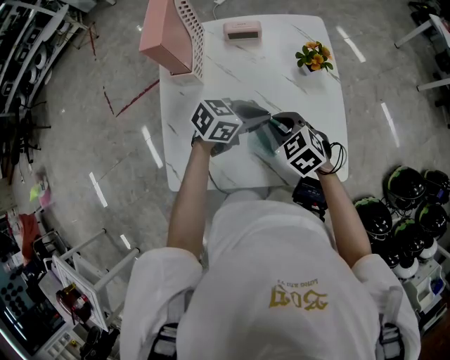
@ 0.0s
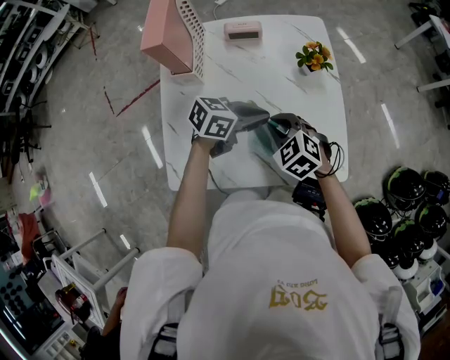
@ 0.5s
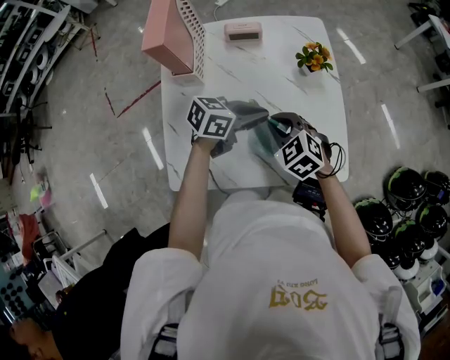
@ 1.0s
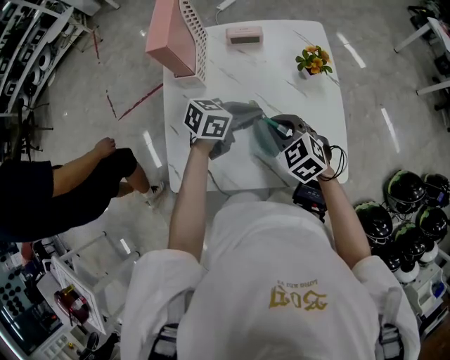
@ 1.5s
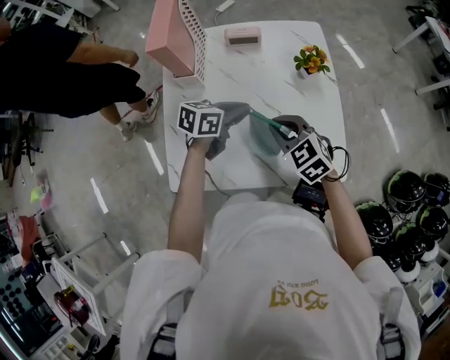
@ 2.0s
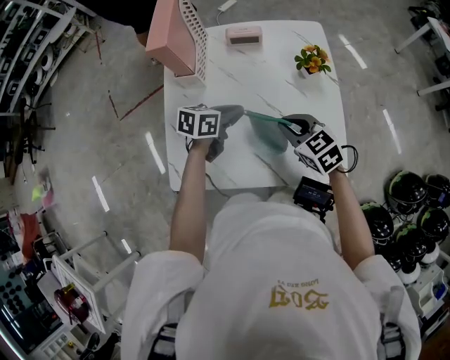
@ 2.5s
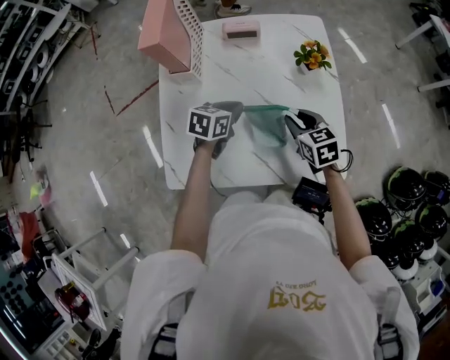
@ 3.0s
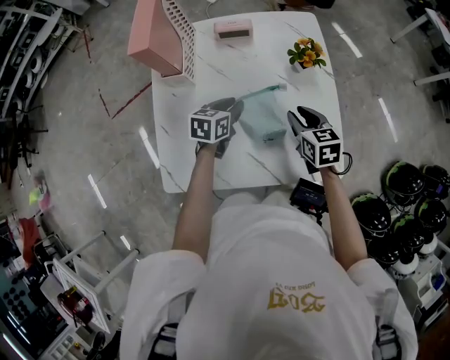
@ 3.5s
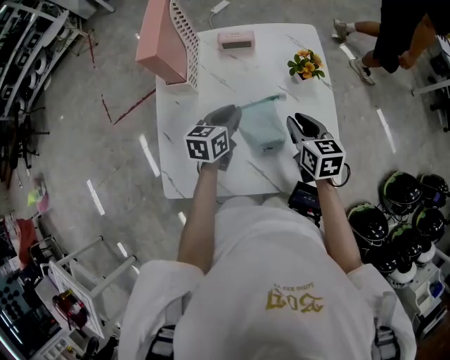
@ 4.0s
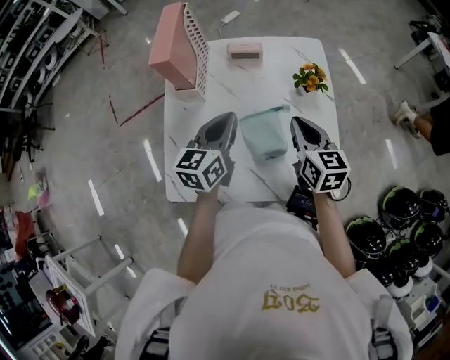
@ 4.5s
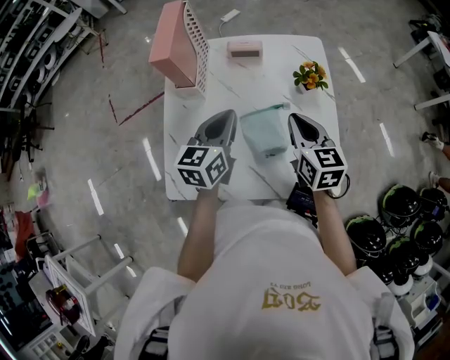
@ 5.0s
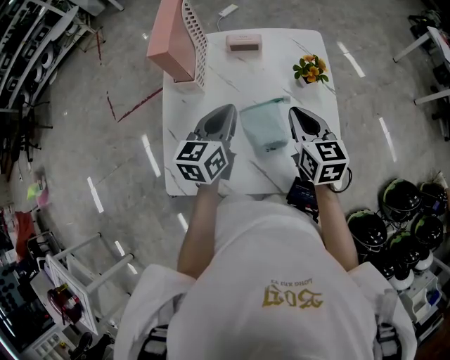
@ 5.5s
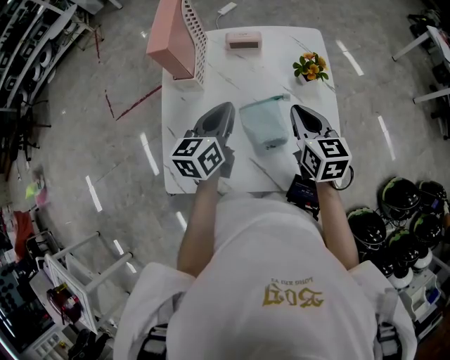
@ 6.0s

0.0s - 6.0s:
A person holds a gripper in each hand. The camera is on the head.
0.0s - 2.0s: The left gripper heads to the left, covering about 5 cm, and changes its angle by approximately 20 degrees.
2.0s - 4.0s: The left gripper turns by some 30 degrees; the right gripper is displaced to the right and forward by some 10 cm, and changes its angle by some 40 degrees.
4.0s - 6.0s: Both grippers travel together upward, approximately 10 cm. The right gripper closes its fingers.

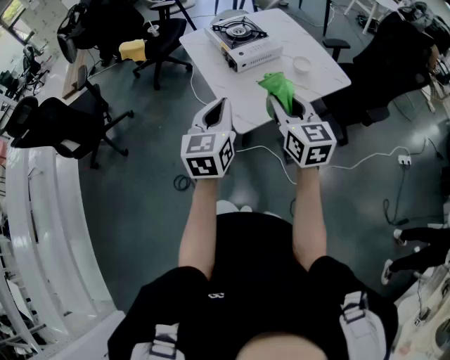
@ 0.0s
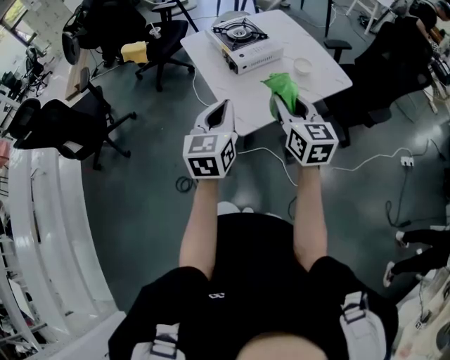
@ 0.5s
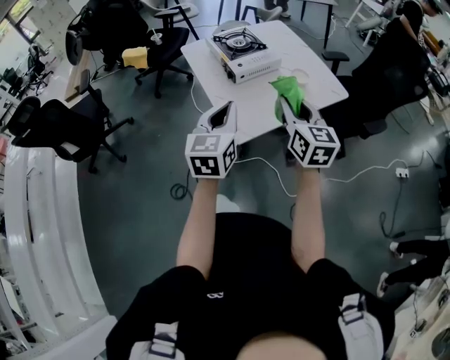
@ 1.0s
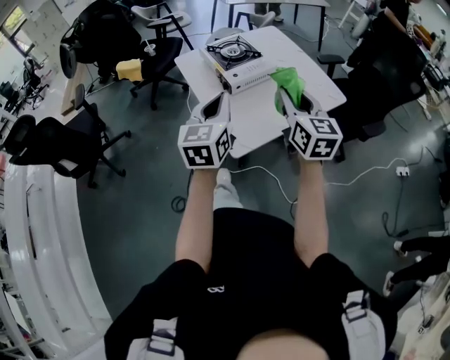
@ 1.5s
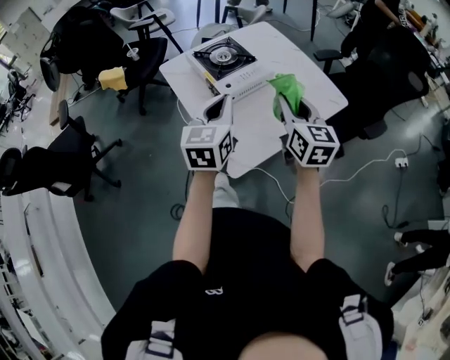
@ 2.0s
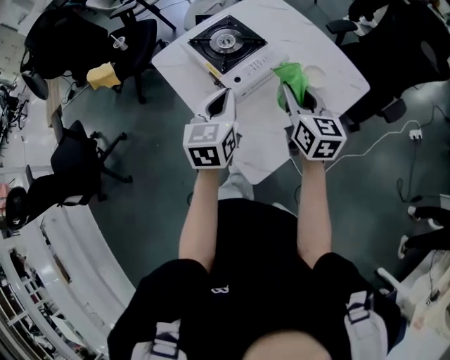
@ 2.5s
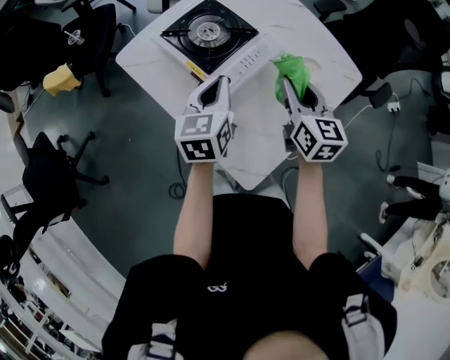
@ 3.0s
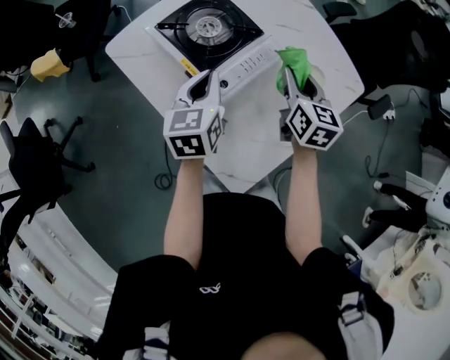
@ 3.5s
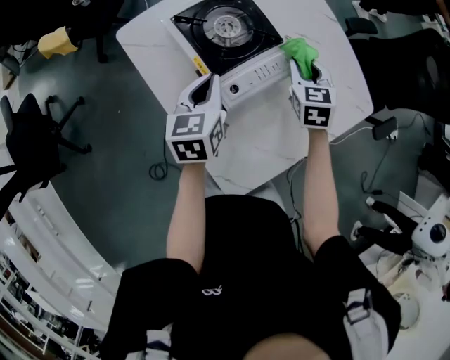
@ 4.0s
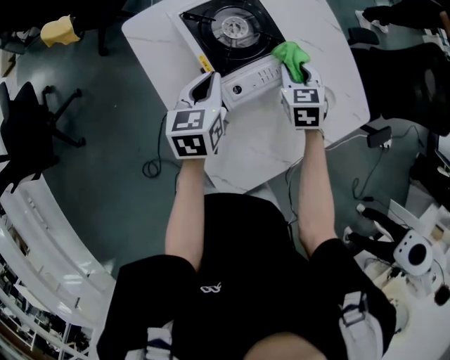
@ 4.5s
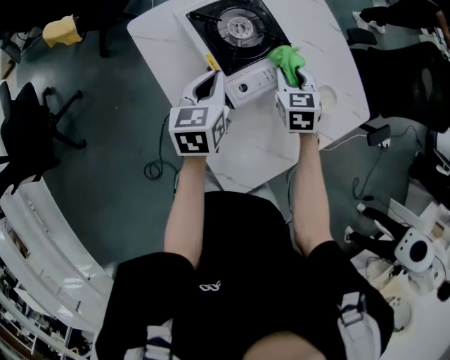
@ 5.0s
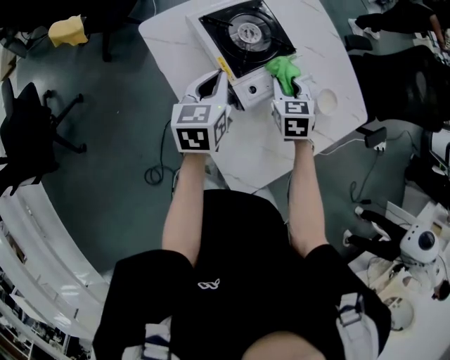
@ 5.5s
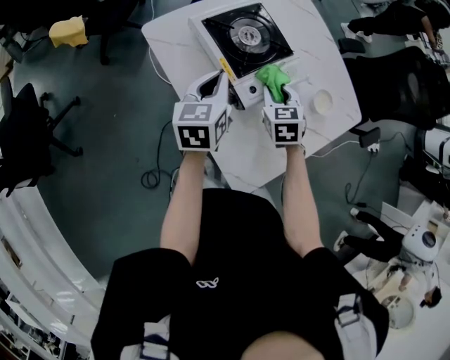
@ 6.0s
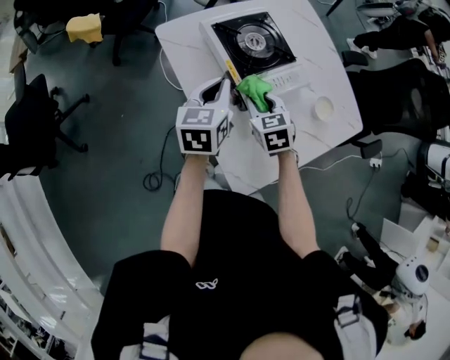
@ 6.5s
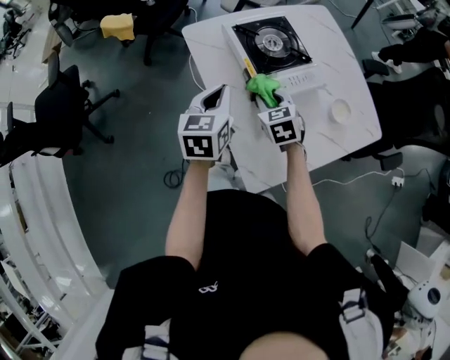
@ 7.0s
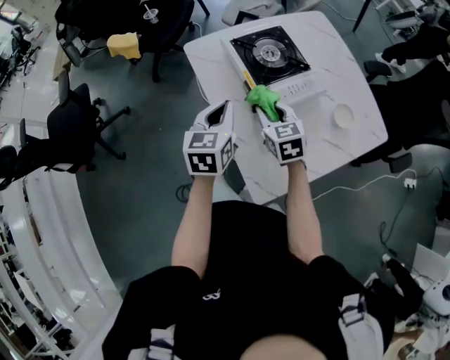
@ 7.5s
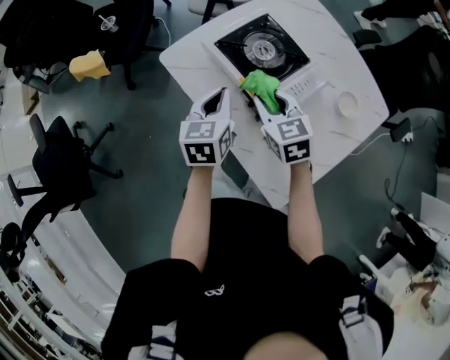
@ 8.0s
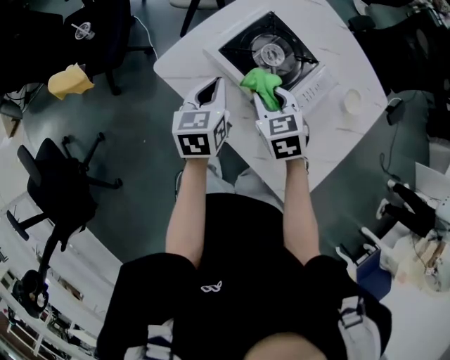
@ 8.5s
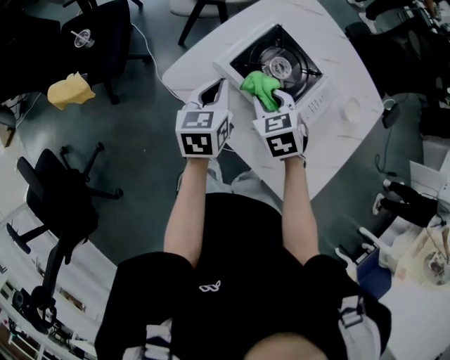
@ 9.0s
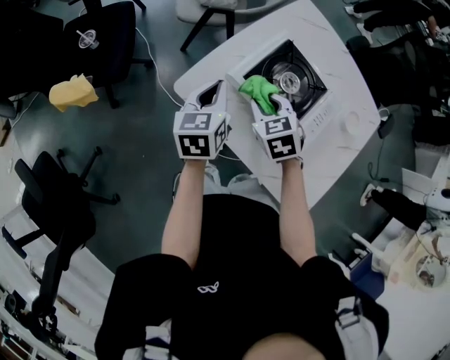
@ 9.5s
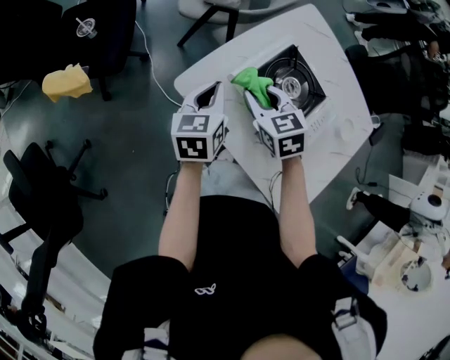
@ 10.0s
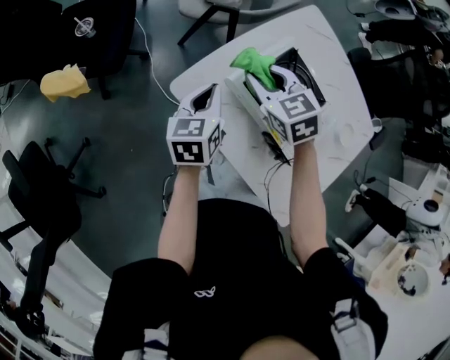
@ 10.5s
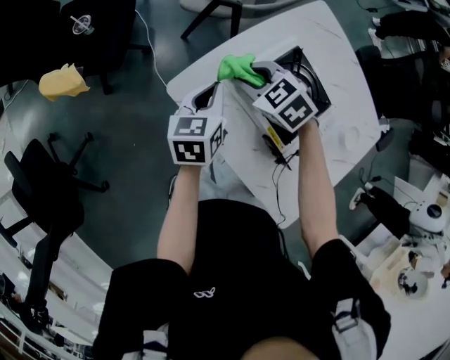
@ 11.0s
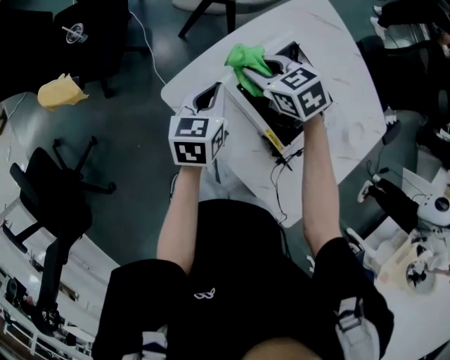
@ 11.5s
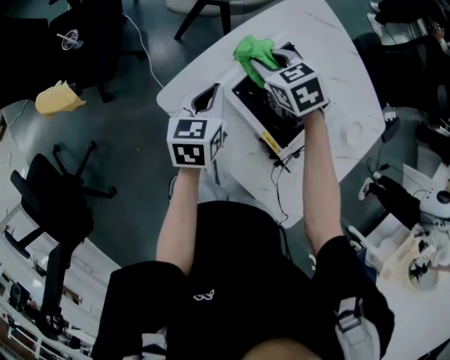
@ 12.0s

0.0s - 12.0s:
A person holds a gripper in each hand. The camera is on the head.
0.0s - 2.0s: The grippers both shift forward by approximately 20 cm.
2.0s - 4.0s: The right gripper travels forward and downward by roughly 35 cm, and turns by roughly 40 degrees; the left gripper goes some 30 cm forward, downward and to the left, and rotates roughly 20 degrees.
4.0s - 6.0s: The left gripper ends up roughly 5 cm from where it was; the right gripper travels to the left and backward by approximately 15 cm.
6.0s - 8.0s: The left gripper moves some 10 cm backward and comes back. The right gripper goes about 15 cm to the left and upward.
8.0s - 10.0s: Both grippers move to the left and forward, some 20 cm.
10.0s - 12.0s: The right gripper travels forward and to the right by some 15 cm, while the left gripper travels to the right by some 5 cm.

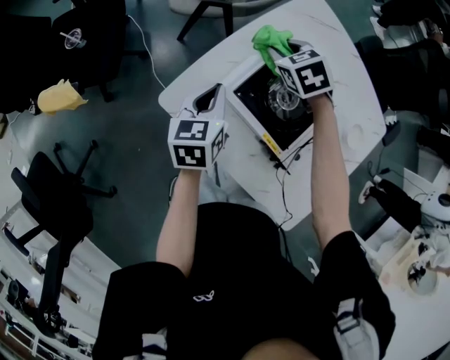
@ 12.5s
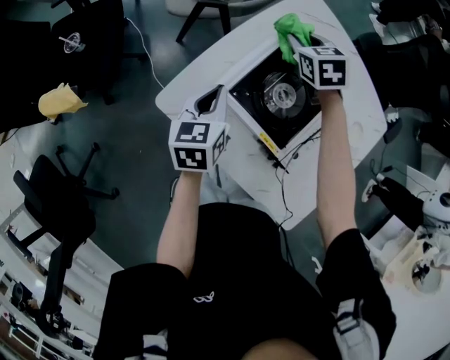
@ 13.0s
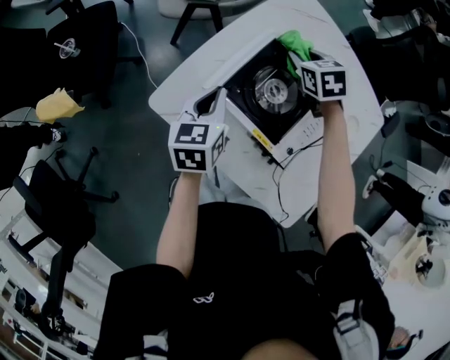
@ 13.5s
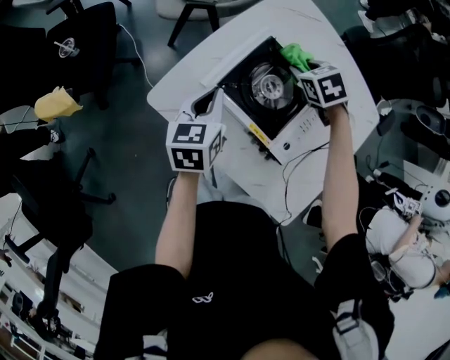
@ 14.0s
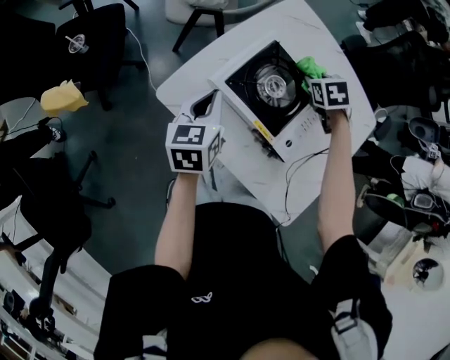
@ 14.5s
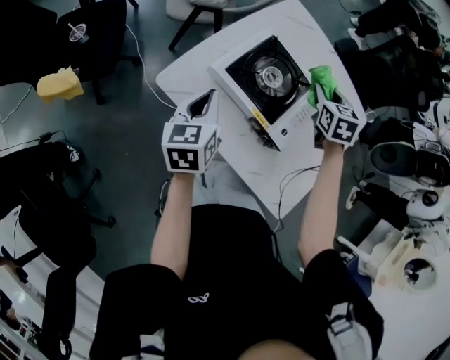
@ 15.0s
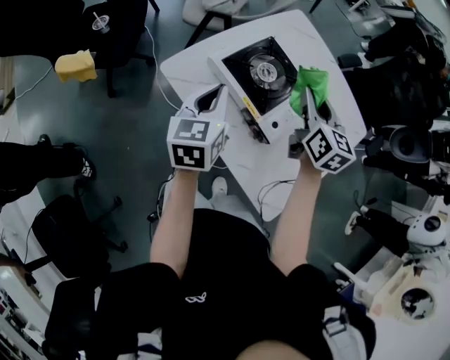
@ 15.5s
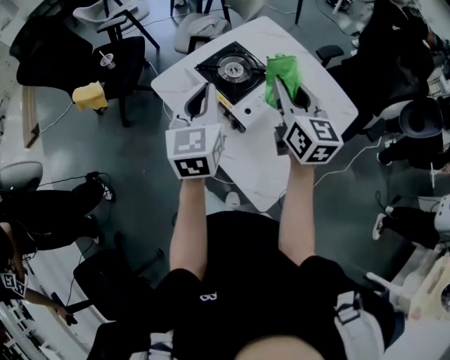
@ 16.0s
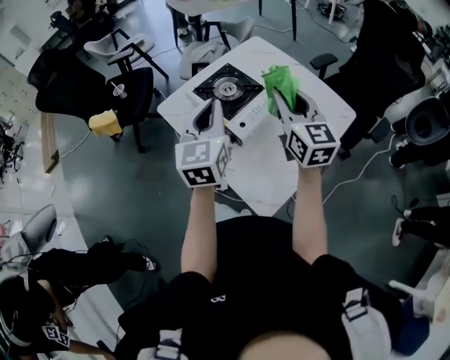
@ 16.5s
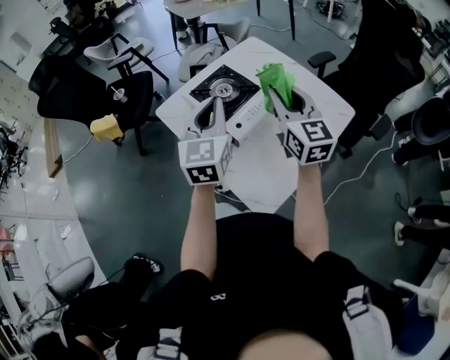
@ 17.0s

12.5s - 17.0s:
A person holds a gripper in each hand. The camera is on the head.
12.5s - 14.5s: The left gripper shifts by some 5 cm. Meanwhile the right gripper heads to the right, covering some 20 cm, and turns by approximately 20 degrees.
14.5s - 17.0s: The right gripper moves upward and backward, some 35 cm, and points its fingers approximately 60 degrees further upward, while the left gripper goes roughly 35 cm upward, to the right and backward, and swivels some 40 degrees.

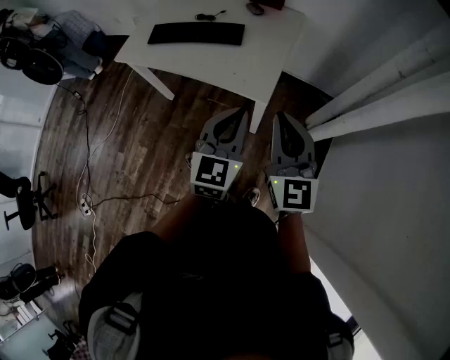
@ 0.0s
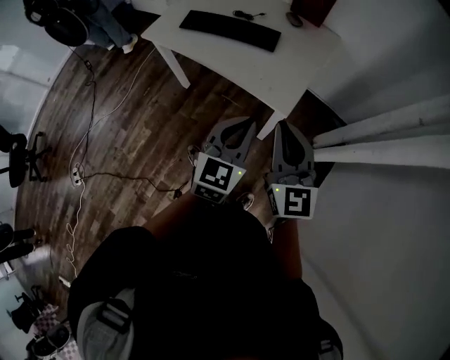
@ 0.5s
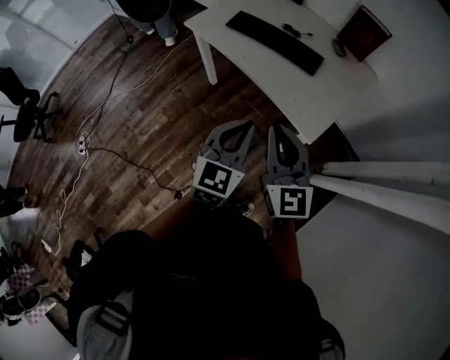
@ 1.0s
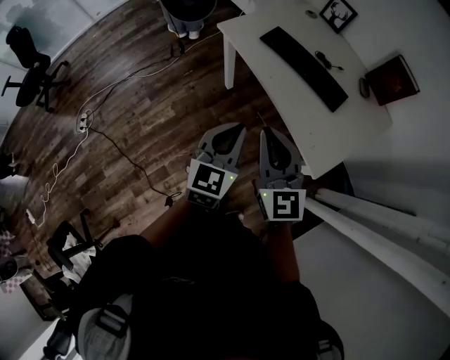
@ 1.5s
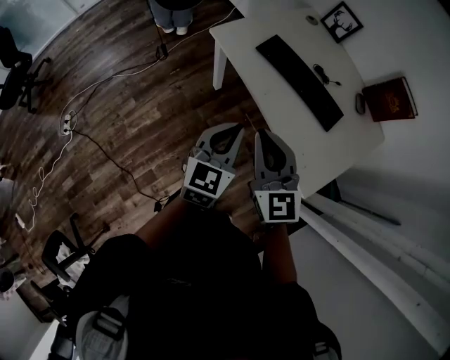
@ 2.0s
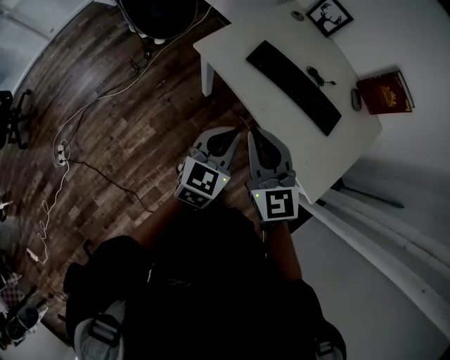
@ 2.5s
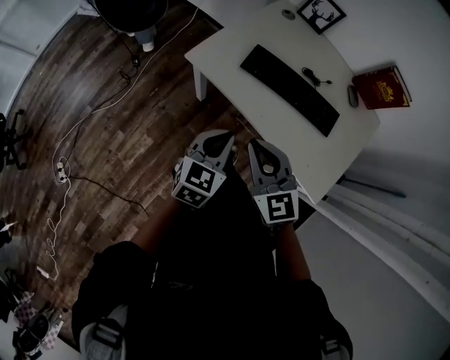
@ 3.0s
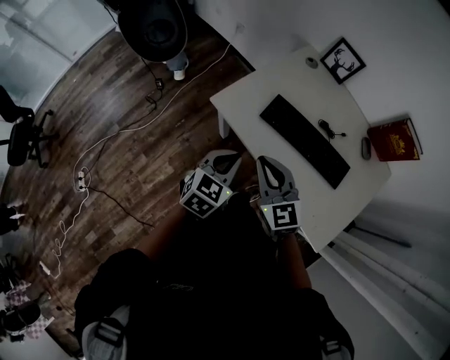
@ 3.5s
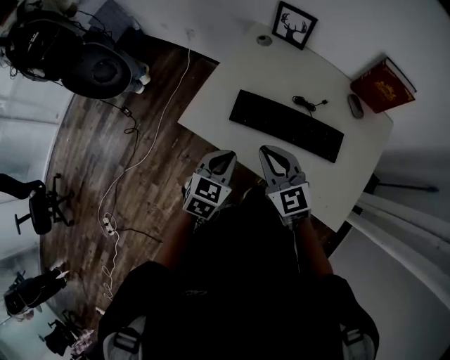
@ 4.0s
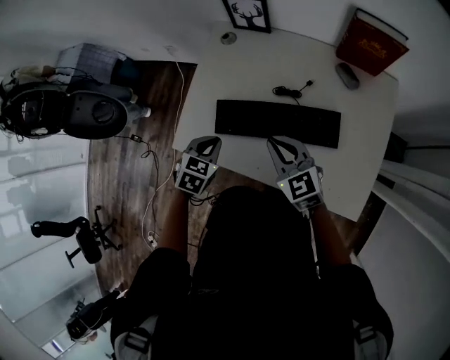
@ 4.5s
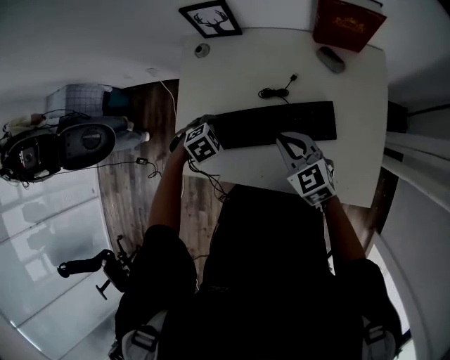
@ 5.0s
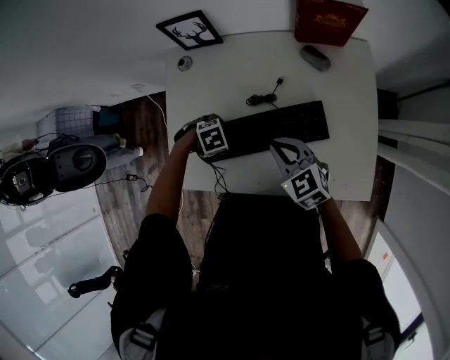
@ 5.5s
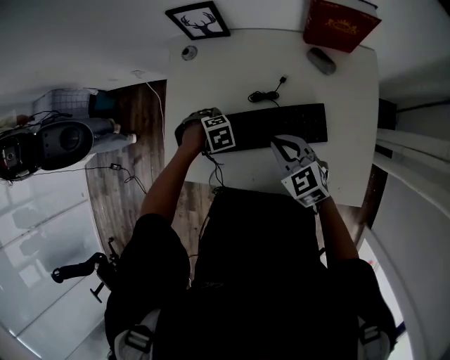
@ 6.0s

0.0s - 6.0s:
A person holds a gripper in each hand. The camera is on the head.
0.0s - 2.0s: The right gripper ends up approximately 35 cm from where it was, and rotates about 40 degrees, while the left gripper shifts by about 35 cm, and changes its angle by some 30 degrees.
2.0s - 4.0s: The two grippers go some 25 cm forward. The left gripper rotates some 30 degrees.
4.0s - 6.0s: The right gripper ends up some 20 cm from where it was, and swivels approximately 20 degrees; the left gripper changes place by approximately 25 cm, tips its fingers downward by some 40 degrees, and opens.
